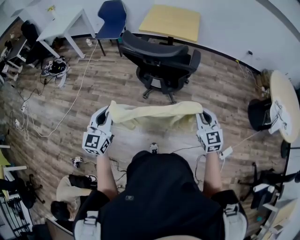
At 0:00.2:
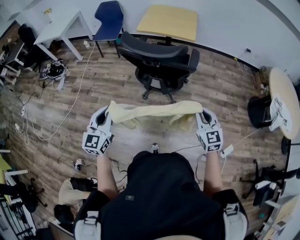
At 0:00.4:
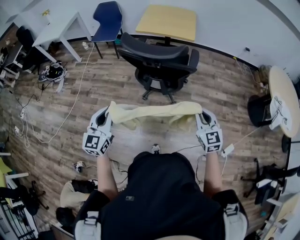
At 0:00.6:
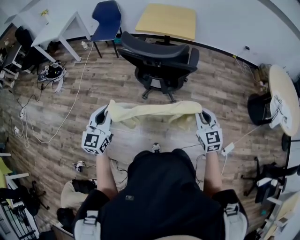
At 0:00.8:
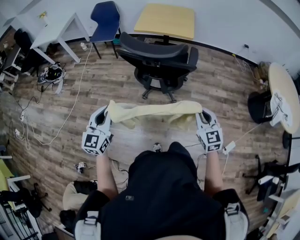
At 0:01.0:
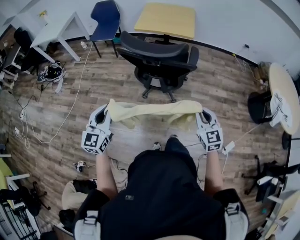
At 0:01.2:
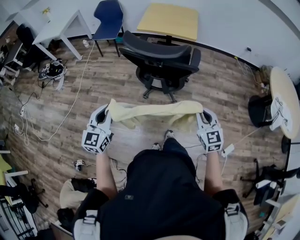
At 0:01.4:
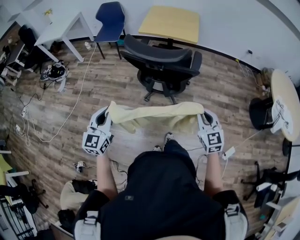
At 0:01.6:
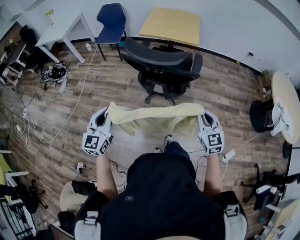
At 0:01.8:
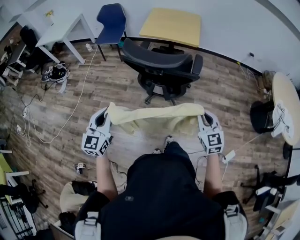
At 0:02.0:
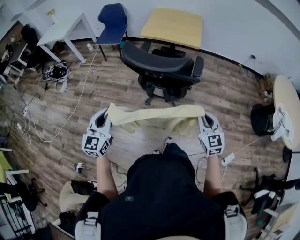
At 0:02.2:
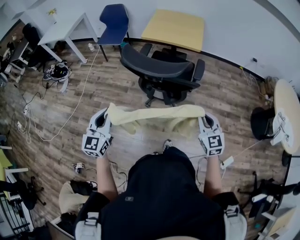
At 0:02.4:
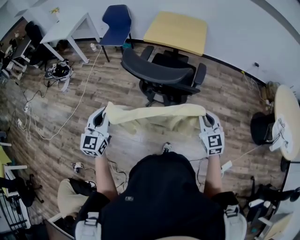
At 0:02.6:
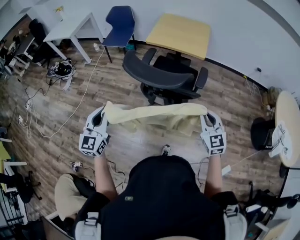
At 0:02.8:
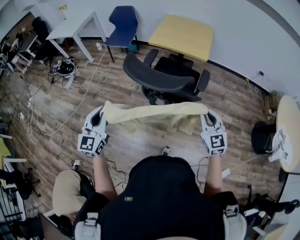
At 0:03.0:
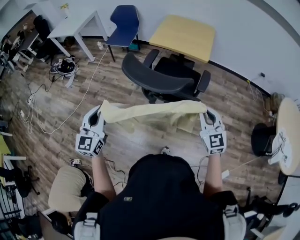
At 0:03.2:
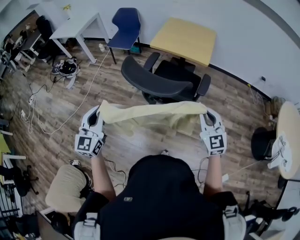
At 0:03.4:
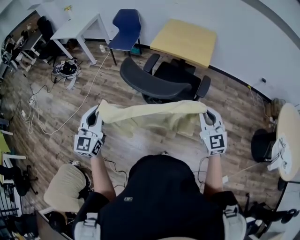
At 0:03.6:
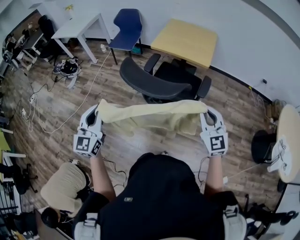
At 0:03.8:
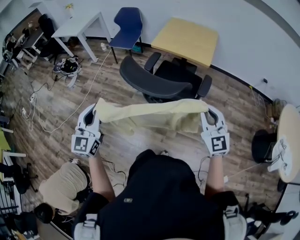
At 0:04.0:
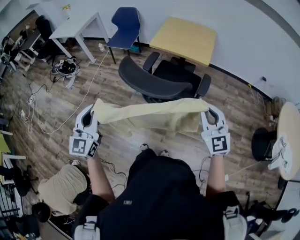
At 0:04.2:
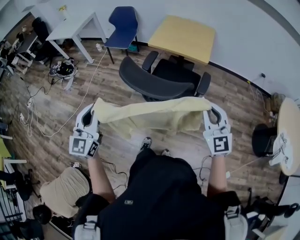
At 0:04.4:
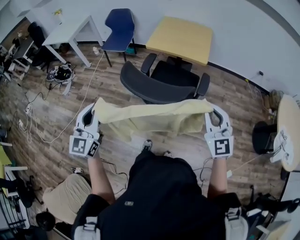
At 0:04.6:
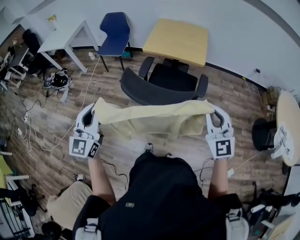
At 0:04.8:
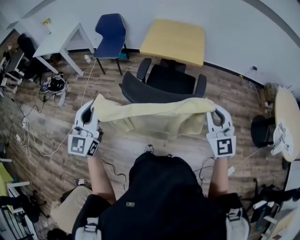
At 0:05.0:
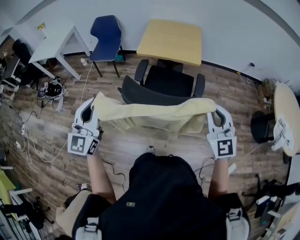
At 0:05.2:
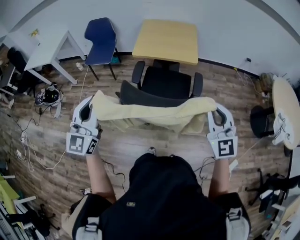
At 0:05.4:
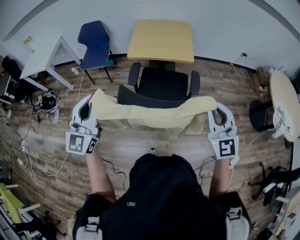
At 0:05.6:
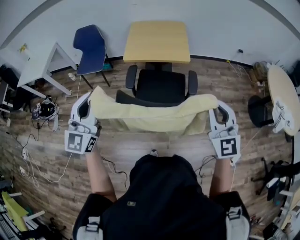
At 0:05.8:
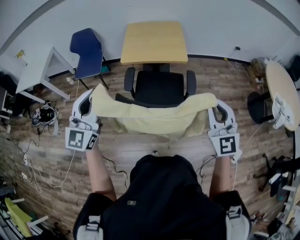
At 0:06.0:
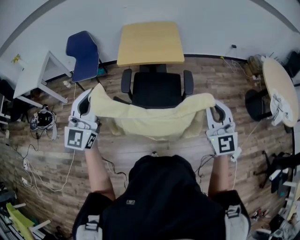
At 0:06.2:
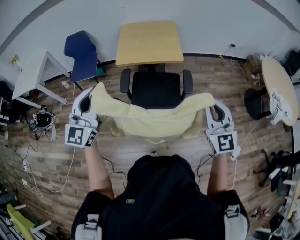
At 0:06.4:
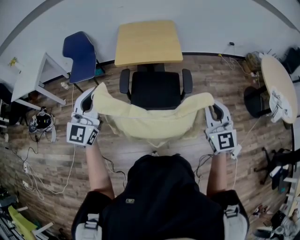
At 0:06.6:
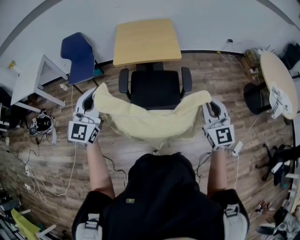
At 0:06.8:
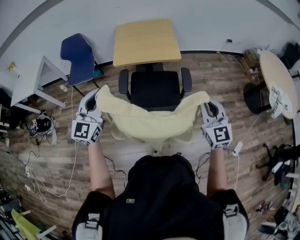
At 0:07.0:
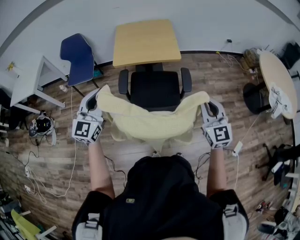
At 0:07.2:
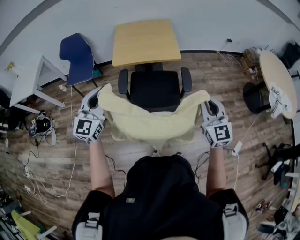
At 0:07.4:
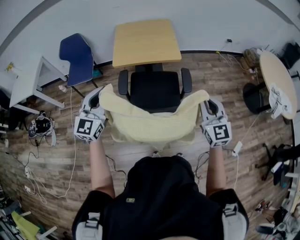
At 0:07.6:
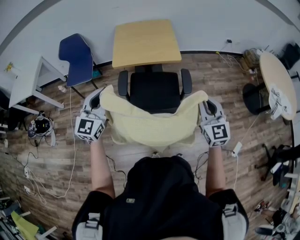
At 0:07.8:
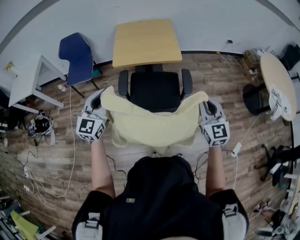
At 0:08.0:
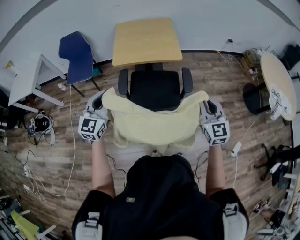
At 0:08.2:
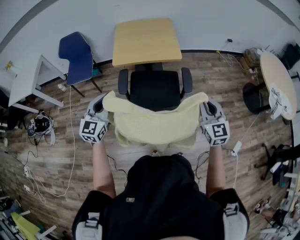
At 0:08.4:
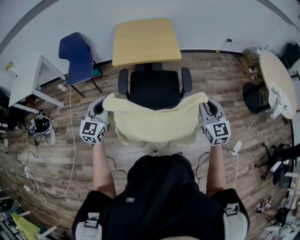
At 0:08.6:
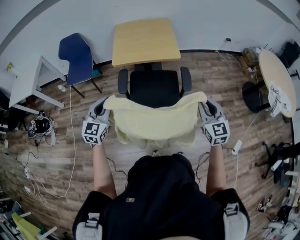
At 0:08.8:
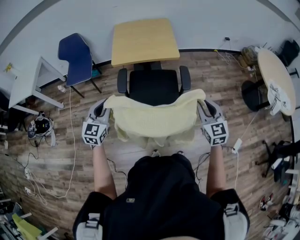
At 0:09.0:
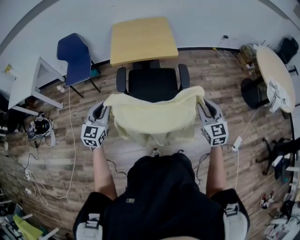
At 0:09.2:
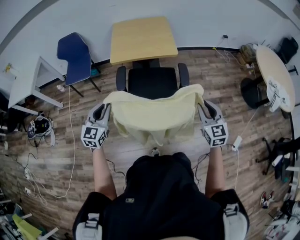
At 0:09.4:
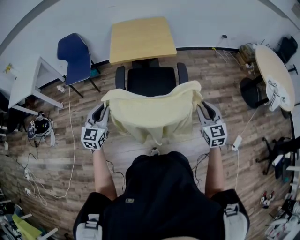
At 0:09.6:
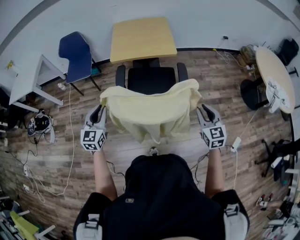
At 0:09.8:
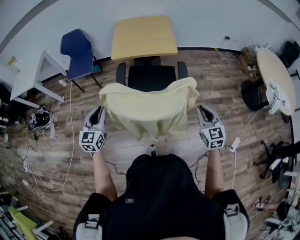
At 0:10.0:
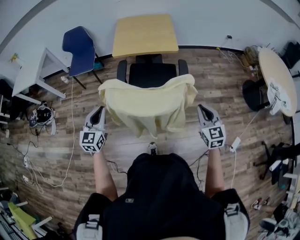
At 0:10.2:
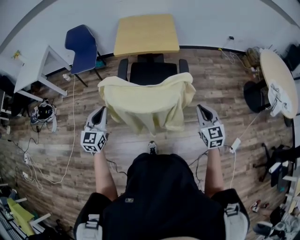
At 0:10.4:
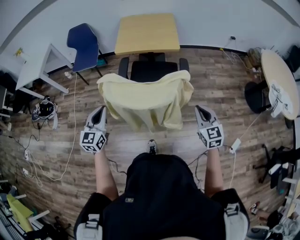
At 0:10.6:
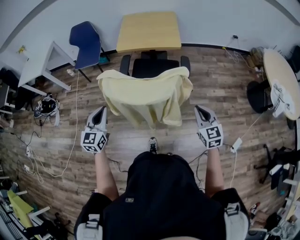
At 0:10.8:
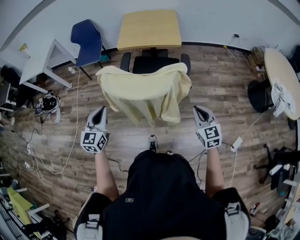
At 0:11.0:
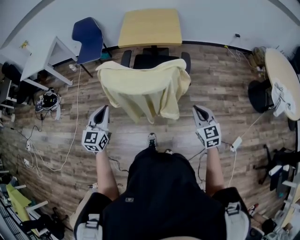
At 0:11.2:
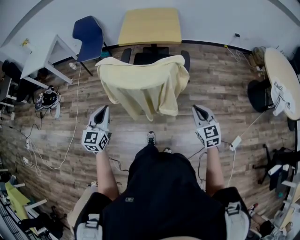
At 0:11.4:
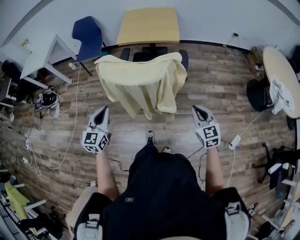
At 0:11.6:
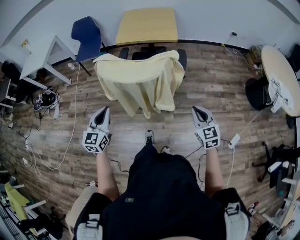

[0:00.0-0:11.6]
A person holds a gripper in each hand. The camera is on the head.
0:00.0 to 0:01.4: There are only small adjustments of the grippers.
0:01.4 to 0:02.8: The right gripper heads forward, covering some 15 cm. The left gripper heads forward and upward, covering some 10 cm.
0:02.8 to 0:04.4: The right gripper is displaced upward by roughly 10 cm; the left gripper moves forward, approximately 5 cm.
0:04.4 to 0:05.8: The left gripper is displaced forward by some 20 cm, and rotates about 30 degrees; the right gripper travels forward by some 5 cm.
0:05.8 to 0:07.2: The left gripper travels forward and downward by approximately 10 cm, while the right gripper heads downward, covering about 5 cm.
0:07.2 to 0:08.8: The left gripper heads downward, covering about 10 cm, while the right gripper shifts approximately 5 cm downward.
0:08.8 to 0:10.2: The left gripper goes about 15 cm backward, while the right gripper shifts roughly 10 cm backward and to the right.
0:10.2 to 0:11.6: The left gripper heads backward and to the right, covering some 15 cm, while the right gripper moves backward, approximately 10 cm.

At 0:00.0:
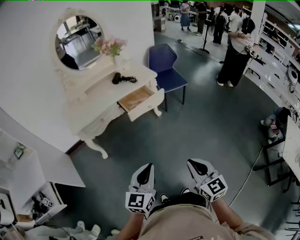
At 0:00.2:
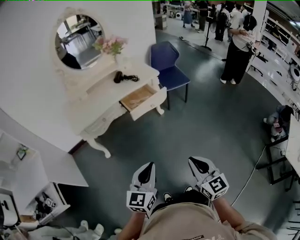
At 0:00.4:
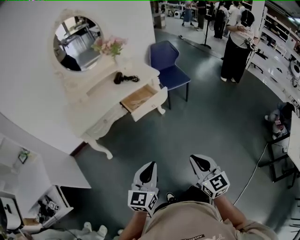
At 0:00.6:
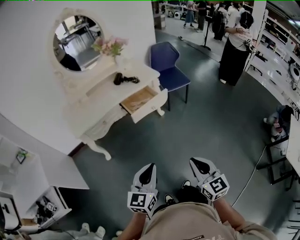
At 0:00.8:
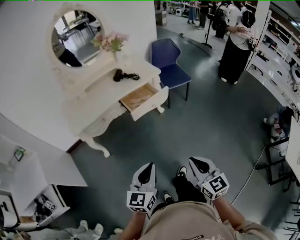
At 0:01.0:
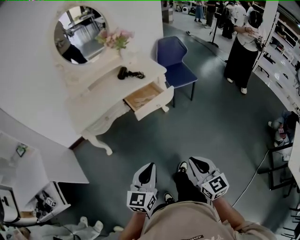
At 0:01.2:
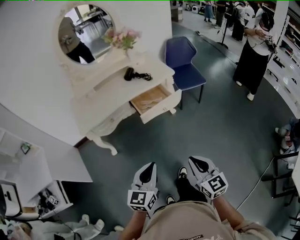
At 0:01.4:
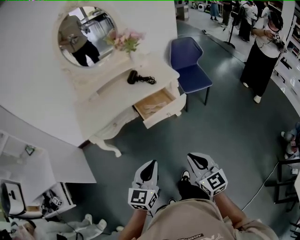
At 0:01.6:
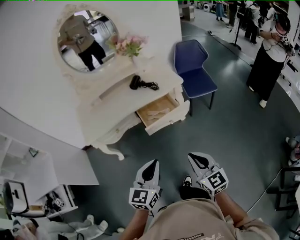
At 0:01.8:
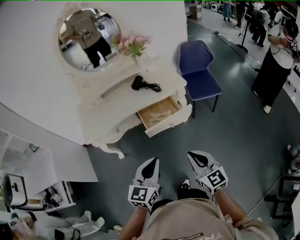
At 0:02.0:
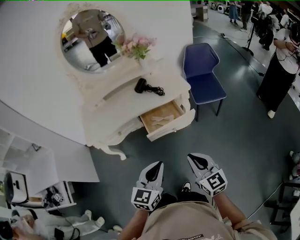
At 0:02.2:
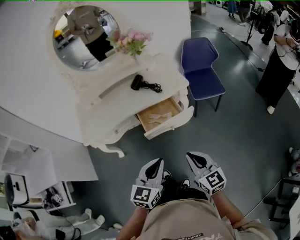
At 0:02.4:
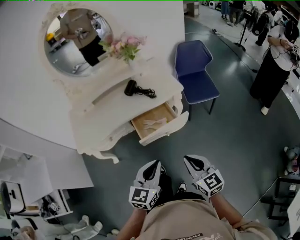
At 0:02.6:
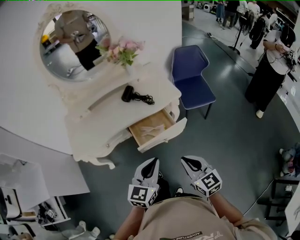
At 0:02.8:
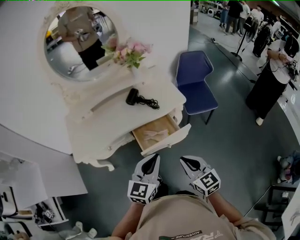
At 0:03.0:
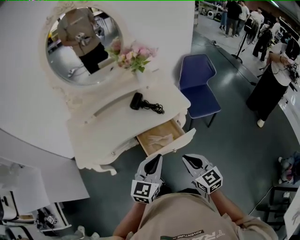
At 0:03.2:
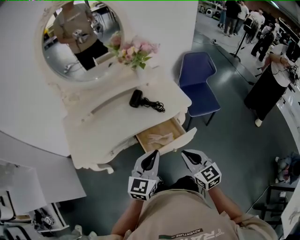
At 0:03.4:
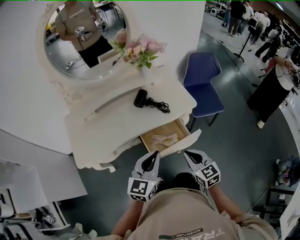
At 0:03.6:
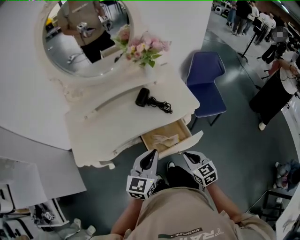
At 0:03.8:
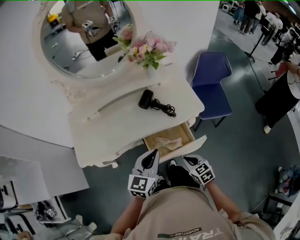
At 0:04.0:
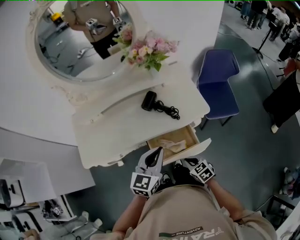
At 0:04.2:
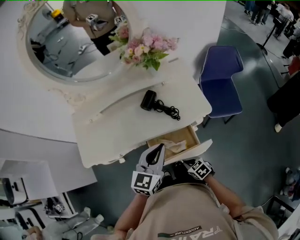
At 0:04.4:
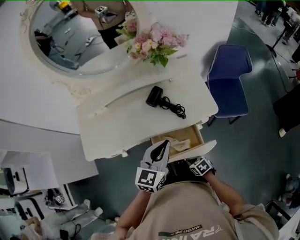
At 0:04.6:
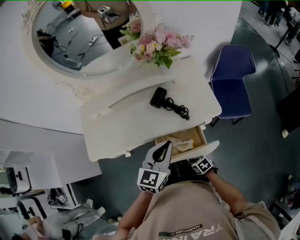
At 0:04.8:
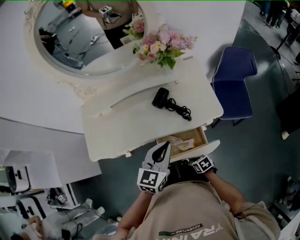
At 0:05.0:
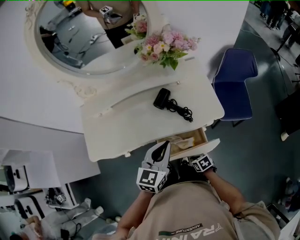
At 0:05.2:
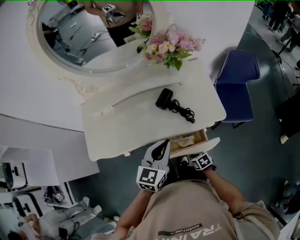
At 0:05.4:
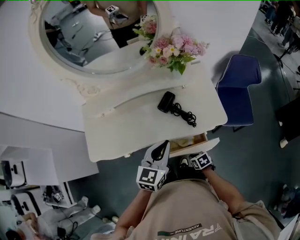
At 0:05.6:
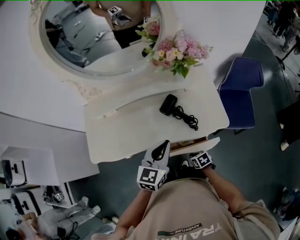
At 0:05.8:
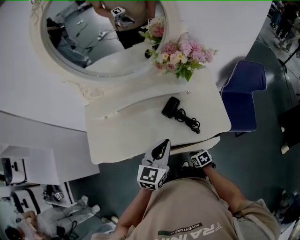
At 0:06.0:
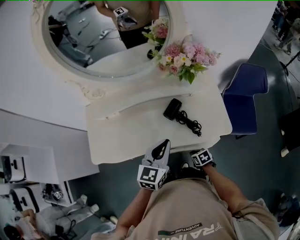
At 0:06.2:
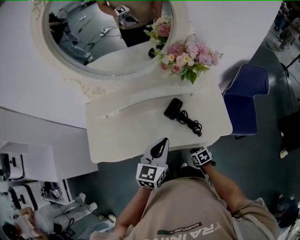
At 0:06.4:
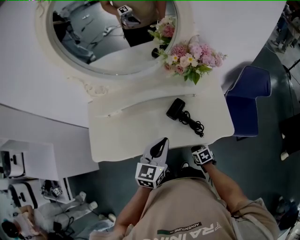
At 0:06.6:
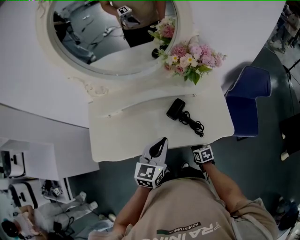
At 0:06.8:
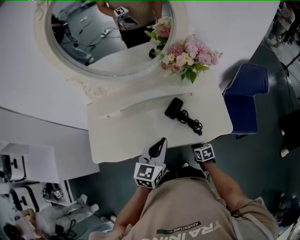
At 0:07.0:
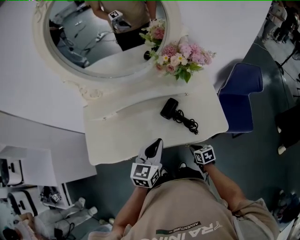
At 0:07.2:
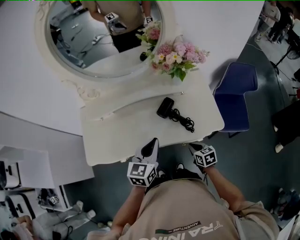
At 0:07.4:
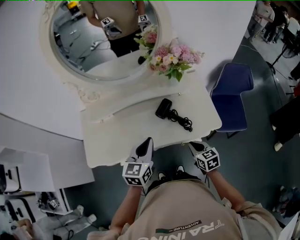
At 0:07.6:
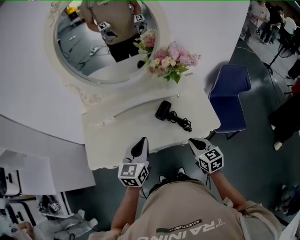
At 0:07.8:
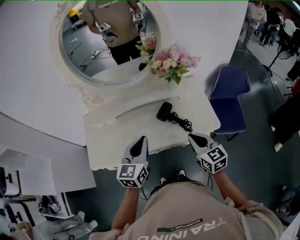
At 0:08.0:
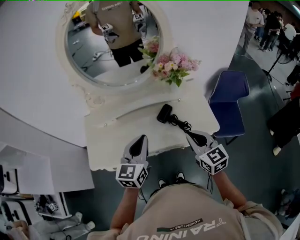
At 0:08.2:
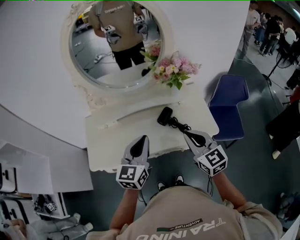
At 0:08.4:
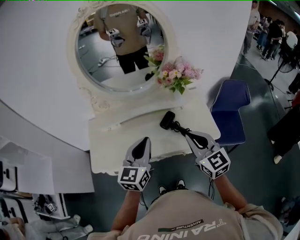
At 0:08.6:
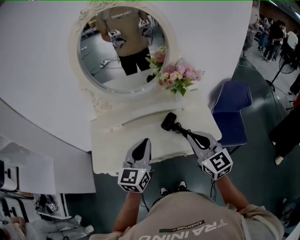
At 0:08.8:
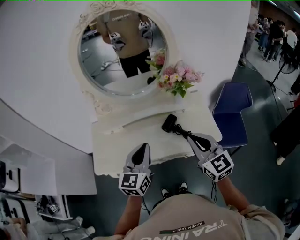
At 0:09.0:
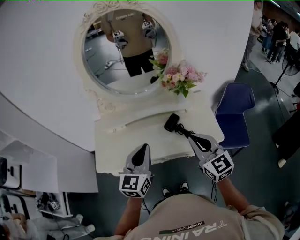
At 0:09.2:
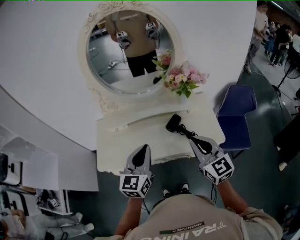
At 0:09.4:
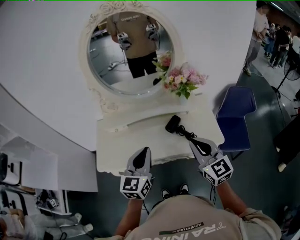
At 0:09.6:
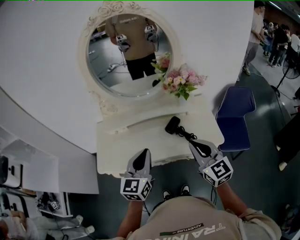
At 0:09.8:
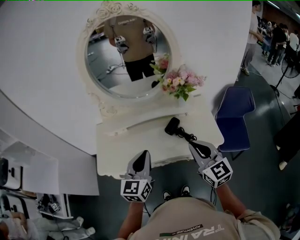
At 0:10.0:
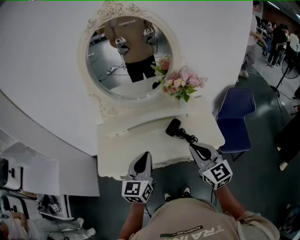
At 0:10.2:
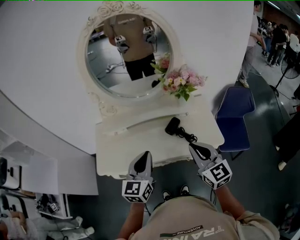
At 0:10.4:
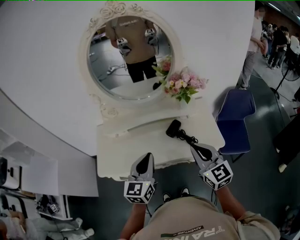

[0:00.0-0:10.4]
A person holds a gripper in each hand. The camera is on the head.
0:00.0 to 0:01.4: Both grippers travel together forward, some 20 cm.
0:01.4 to 0:03.0: Both grippers travel together forward, some 30 cm.
0:03.0 to 0:04.4: The left gripper ends up approximately 20 cm from where it was. The right gripper travels downward by about 30 cm, and points its fingers roughly 40 degrees further downward.
0:04.4 to 0:06.0: The grippers both shift forward by roughly 15 cm.
0:06.0 to 0:07.4: The left gripper is displaced to the left by some 5 cm. The right gripper goes about 20 cm upward, and swivels some 30 degrees.
0:07.4 to 0:09.0: The right gripper moves upward, roughly 25 cm, and points its fingers roughly 30 degrees further upward; the left gripper goes about 10 cm upward.
0:09.0 to 0:10.4: The grippers make only small movements.

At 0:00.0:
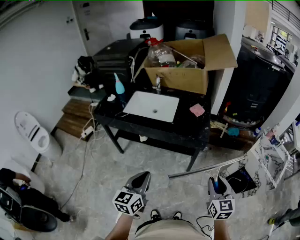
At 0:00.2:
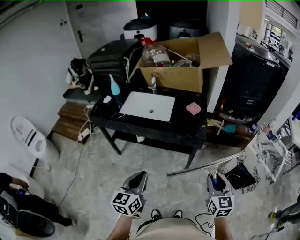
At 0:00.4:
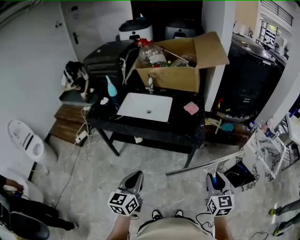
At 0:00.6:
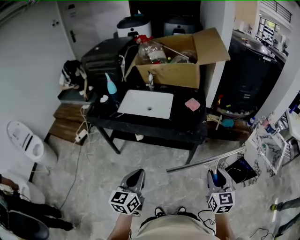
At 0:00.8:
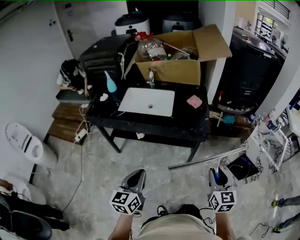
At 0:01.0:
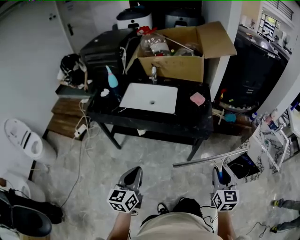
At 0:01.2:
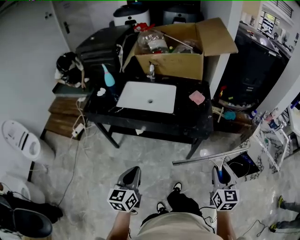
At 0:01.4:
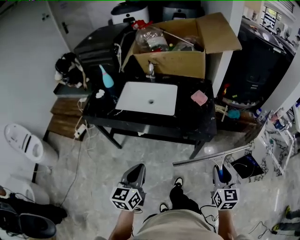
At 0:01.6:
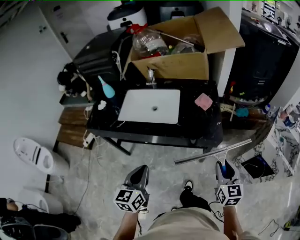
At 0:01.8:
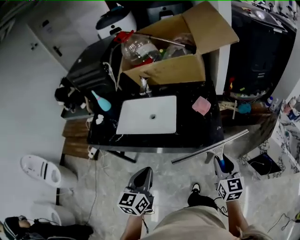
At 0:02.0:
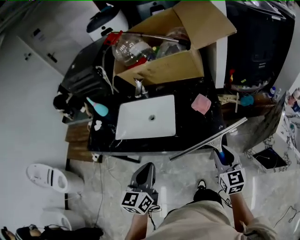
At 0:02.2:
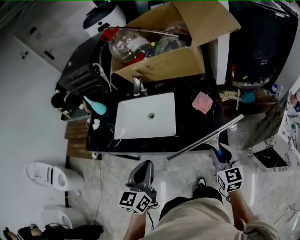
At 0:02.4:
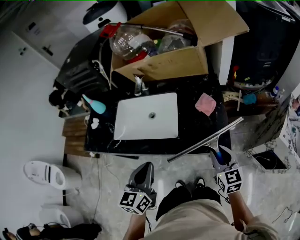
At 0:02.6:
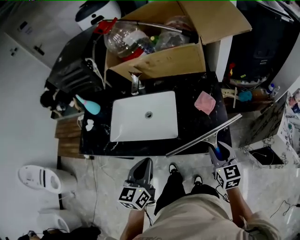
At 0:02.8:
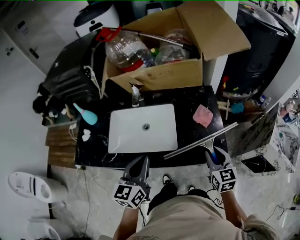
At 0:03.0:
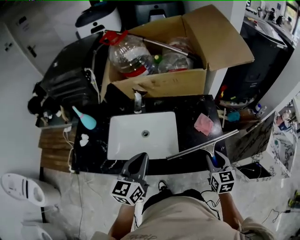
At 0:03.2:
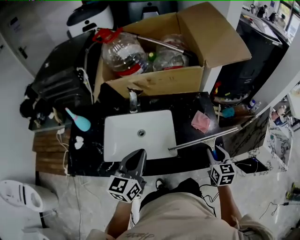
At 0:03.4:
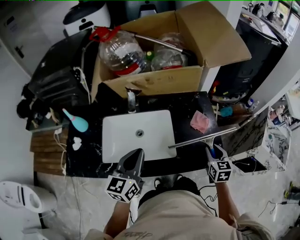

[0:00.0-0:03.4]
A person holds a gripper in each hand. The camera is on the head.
0:00.0 to 0:01.6: The two grippers go approximately 15 cm forward and to the left.
0:01.6 to 0:03.4: Both grippers move forward, some 30 cm.
